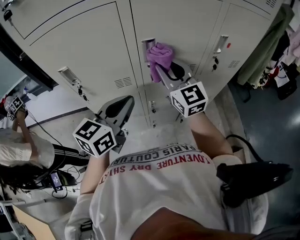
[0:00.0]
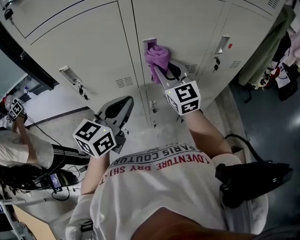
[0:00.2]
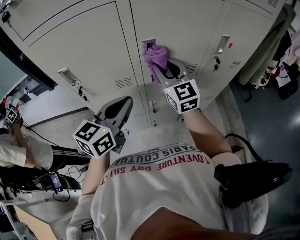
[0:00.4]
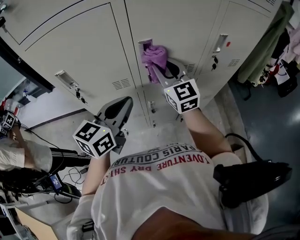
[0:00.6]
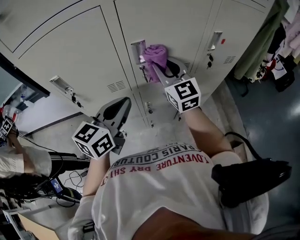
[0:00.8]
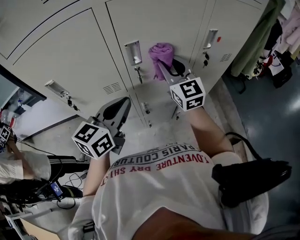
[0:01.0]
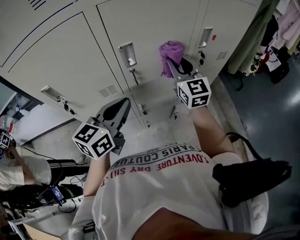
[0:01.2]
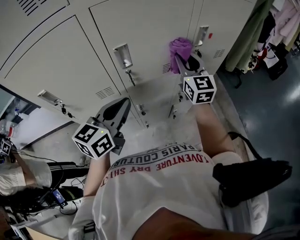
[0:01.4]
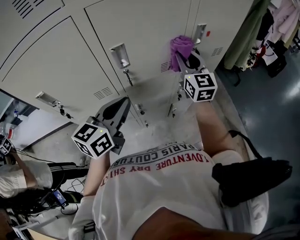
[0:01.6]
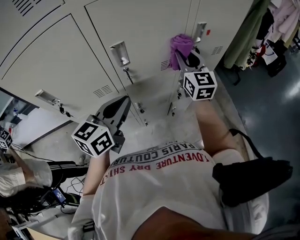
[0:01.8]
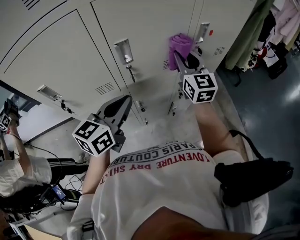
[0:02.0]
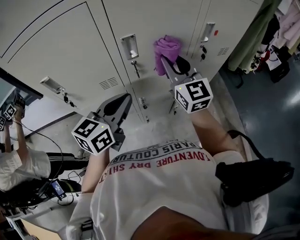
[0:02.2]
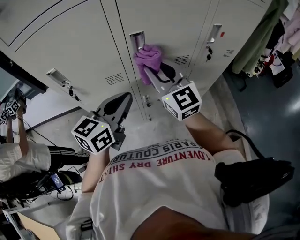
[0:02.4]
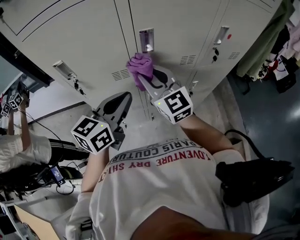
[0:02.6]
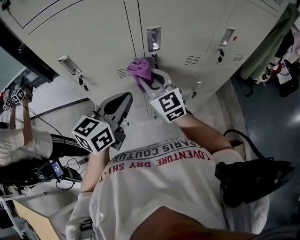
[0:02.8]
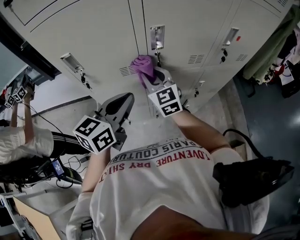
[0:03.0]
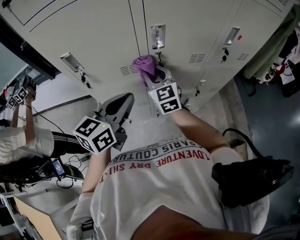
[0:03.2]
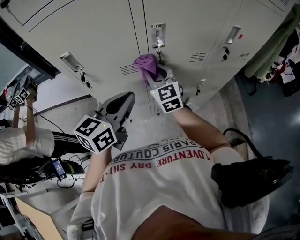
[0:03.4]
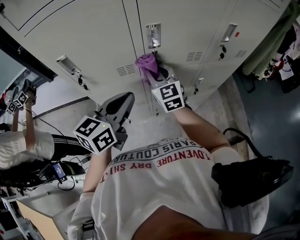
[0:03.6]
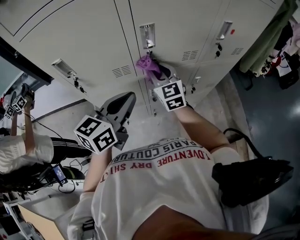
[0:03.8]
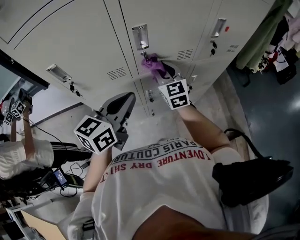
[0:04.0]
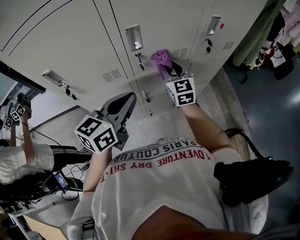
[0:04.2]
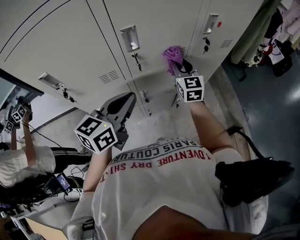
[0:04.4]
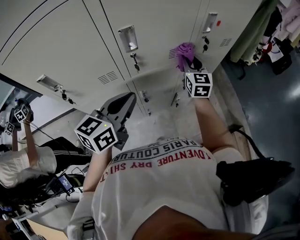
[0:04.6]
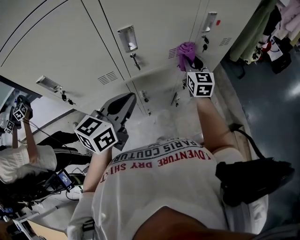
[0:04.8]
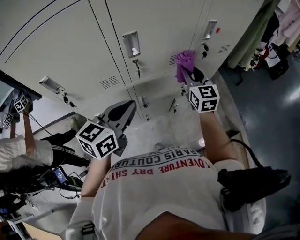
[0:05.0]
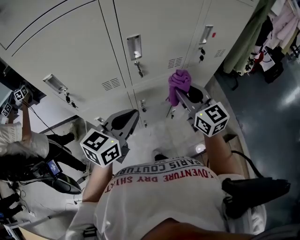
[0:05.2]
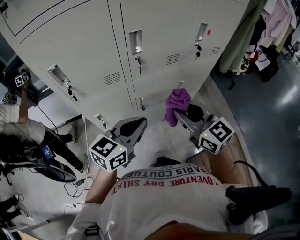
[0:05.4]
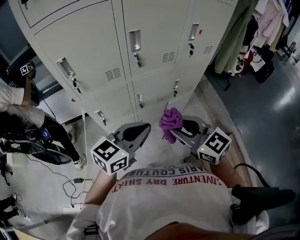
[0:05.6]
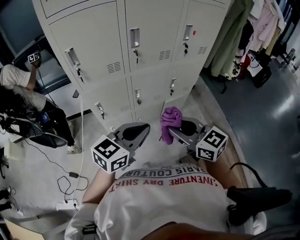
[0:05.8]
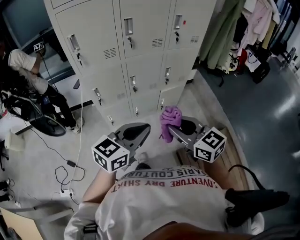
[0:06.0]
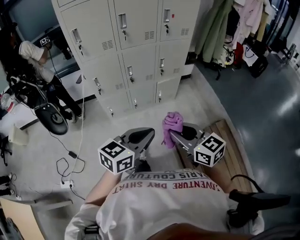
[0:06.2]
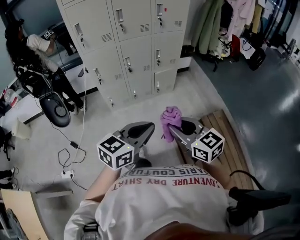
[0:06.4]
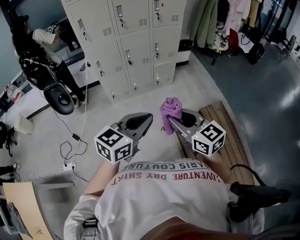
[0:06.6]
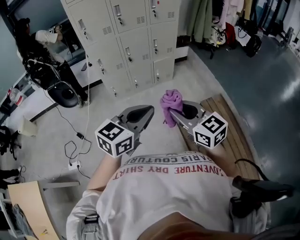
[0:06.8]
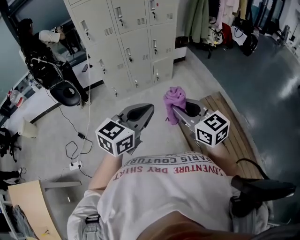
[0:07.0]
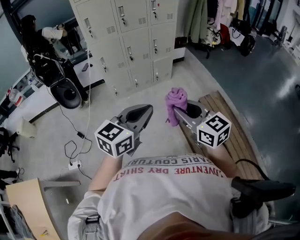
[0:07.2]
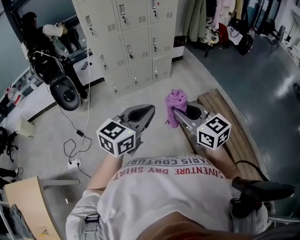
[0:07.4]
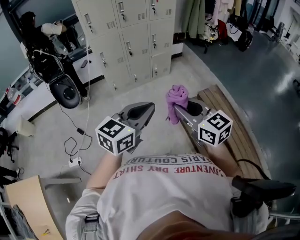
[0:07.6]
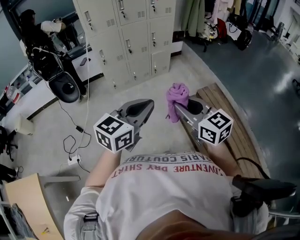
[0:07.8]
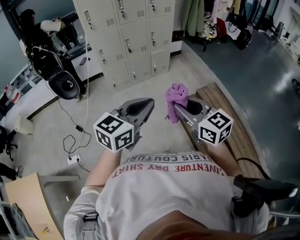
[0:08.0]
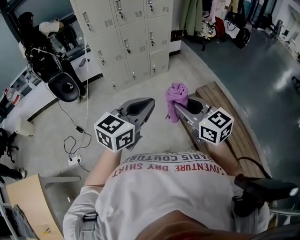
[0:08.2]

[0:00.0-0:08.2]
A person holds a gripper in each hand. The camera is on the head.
0:00.0 to 0:01.6: The left gripper shifts by about 5 cm. Meanwhile the right gripper shifts approximately 20 cm to the right and forward, and changes its angle by some 20 degrees.
0:01.6 to 0:03.2: The left gripper shifts approximately 10 cm to the left and backward. The right gripper travels to the left by approximately 25 cm, and swivels roughly 20 degrees.
0:03.2 to 0:05.0: The right gripper shifts some 25 cm to the right, and turns by roughly 20 degrees. Meanwhile the left gripper goes roughly 5 cm to the right.
0:05.0 to 0:06.6: The pair of grippers is taken backward, roughly 70 cm. The right gripper rotates some 30 degrees.
0:06.6 to 0:08.2: Both grippers move backward, some 15 cm.

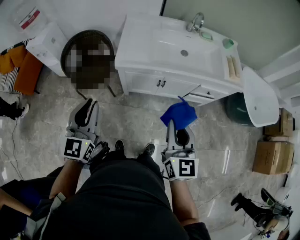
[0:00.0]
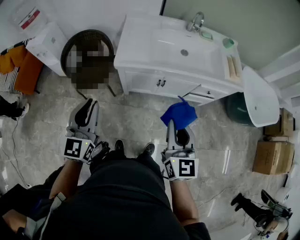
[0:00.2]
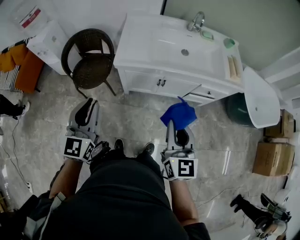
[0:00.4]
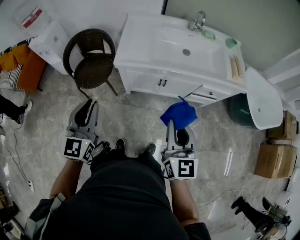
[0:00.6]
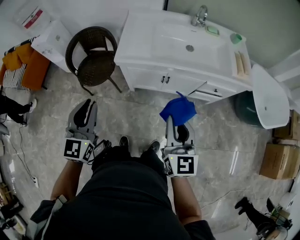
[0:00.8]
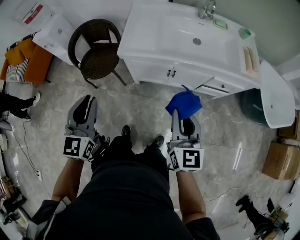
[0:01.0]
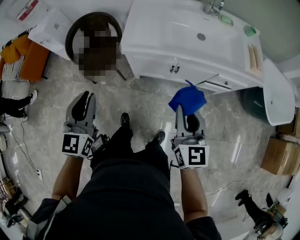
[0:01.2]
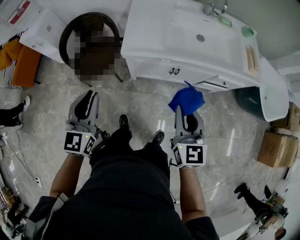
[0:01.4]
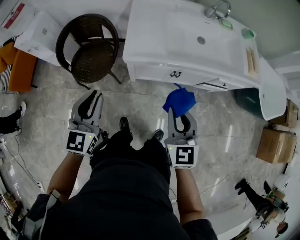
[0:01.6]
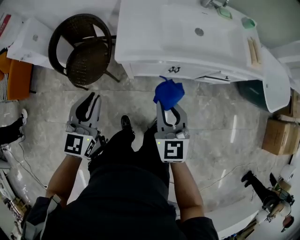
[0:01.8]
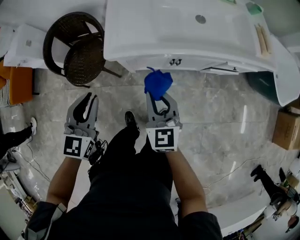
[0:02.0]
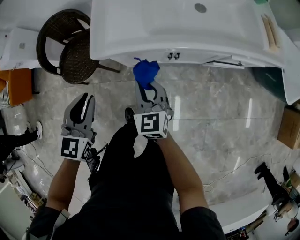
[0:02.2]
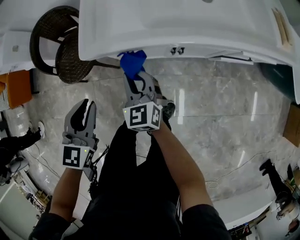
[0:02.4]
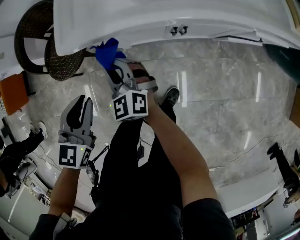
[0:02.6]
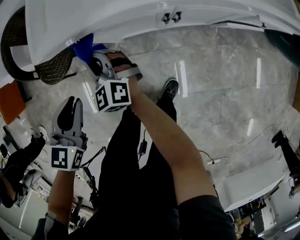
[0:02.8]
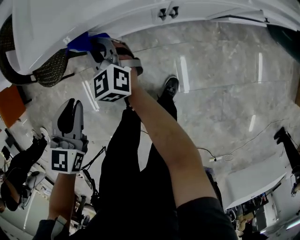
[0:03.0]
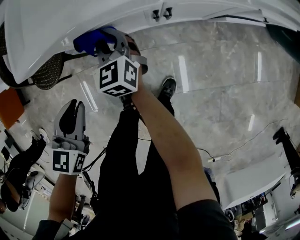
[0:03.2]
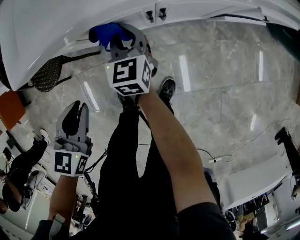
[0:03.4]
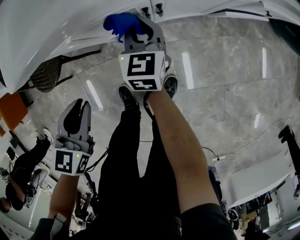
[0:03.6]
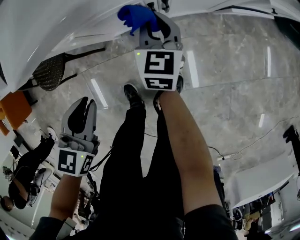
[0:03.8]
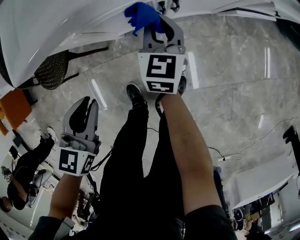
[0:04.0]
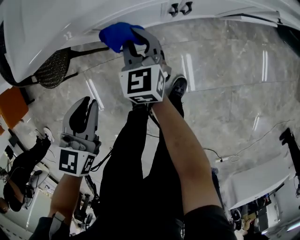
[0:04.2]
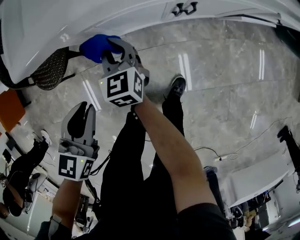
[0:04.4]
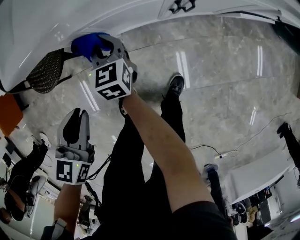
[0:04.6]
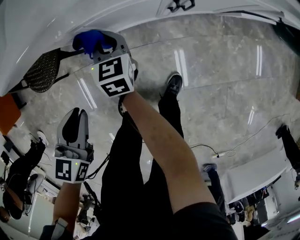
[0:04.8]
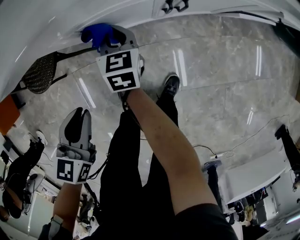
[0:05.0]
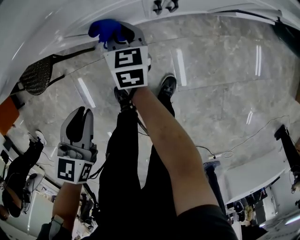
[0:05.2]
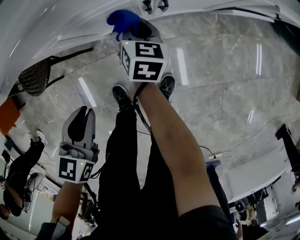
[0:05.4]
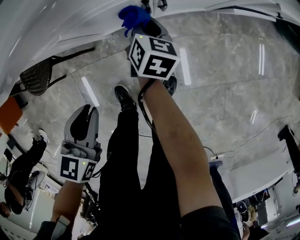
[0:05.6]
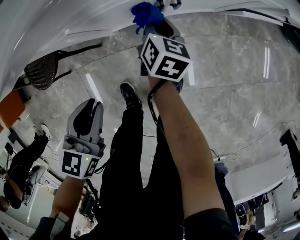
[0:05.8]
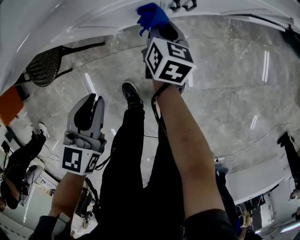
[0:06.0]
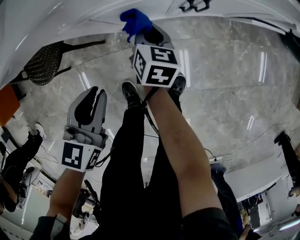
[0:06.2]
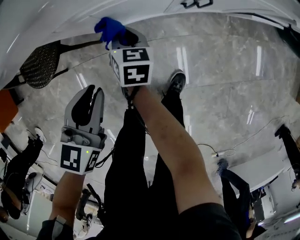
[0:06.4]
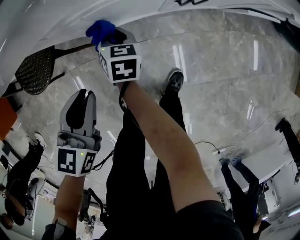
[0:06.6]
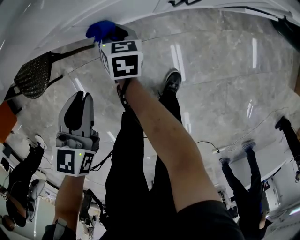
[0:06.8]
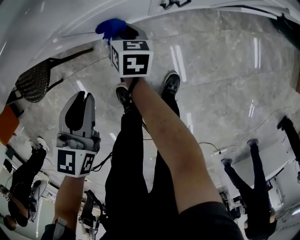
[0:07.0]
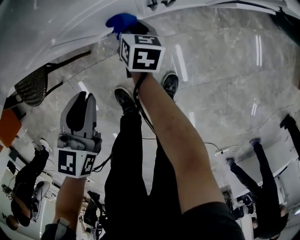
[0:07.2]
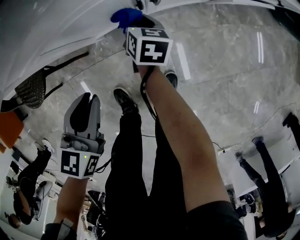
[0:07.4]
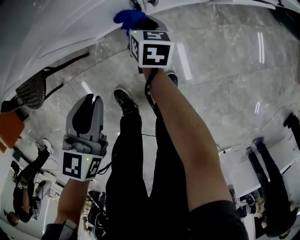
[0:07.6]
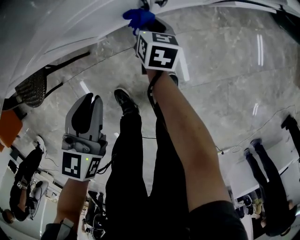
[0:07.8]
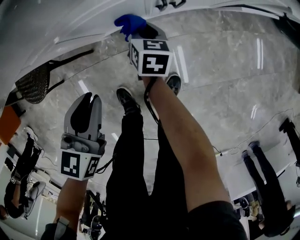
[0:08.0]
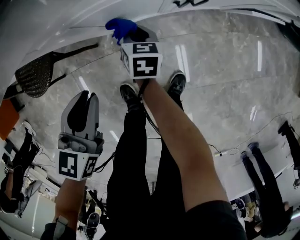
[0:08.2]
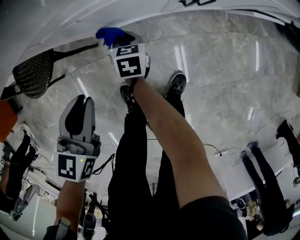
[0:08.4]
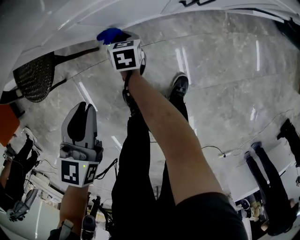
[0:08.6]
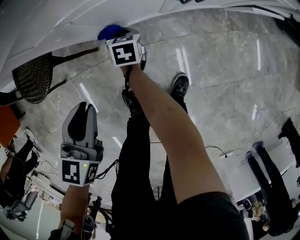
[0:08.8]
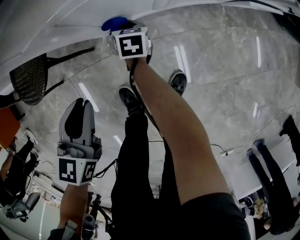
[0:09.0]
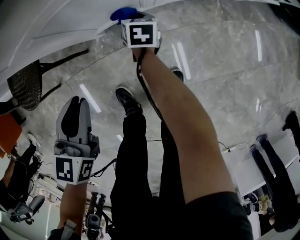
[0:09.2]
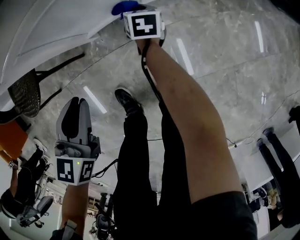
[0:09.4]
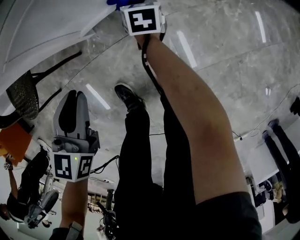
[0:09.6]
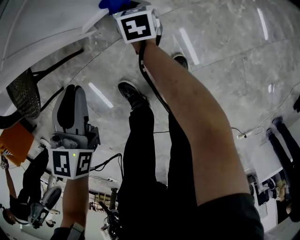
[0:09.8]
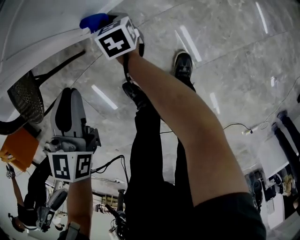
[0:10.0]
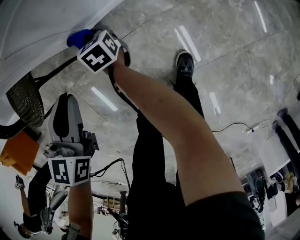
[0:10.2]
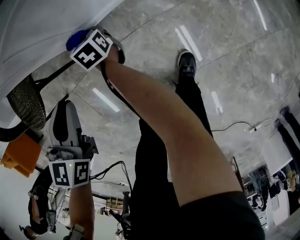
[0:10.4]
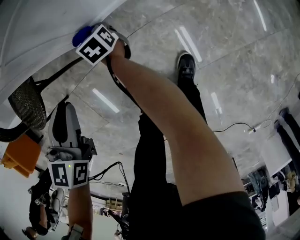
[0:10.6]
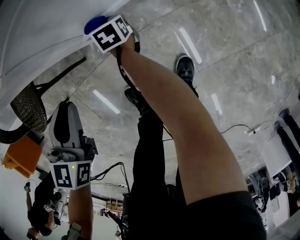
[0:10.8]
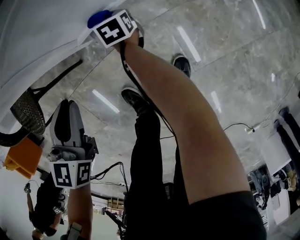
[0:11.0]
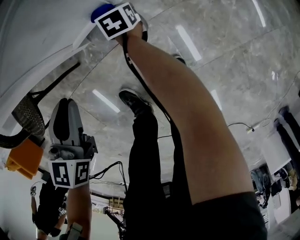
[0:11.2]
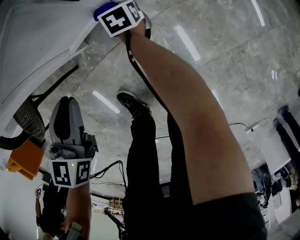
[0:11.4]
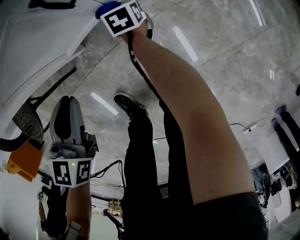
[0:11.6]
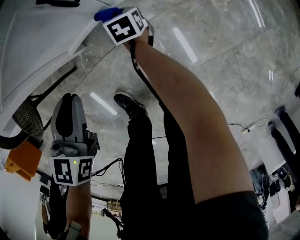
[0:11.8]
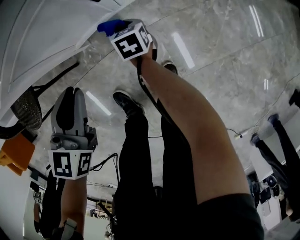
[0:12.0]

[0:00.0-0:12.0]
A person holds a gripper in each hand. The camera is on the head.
0:00.0 to 0:01.6: The right gripper goes some 20 cm to the left, downward and forward, while the left gripper is displaced forward, downward and to the left by about 15 cm.
0:01.6 to 0:03.0: The right gripper moves downward and forward, roughly 50 cm, while the left gripper moves downward, approximately 30 cm, and turns by roughly 30 degrees.
0:03.0 to 0:04.4: The right gripper travels downward by about 5 cm, travels to the right and back again, approximately 20 cm each way, and turns by some 20 degrees. The left gripper travels to the right and back again, roughly 10 cm each way.
0:04.4 to 0:06.0: The left gripper is displaced to the right by about 5 cm; the right gripper moves to the right, roughly 20 cm, and swivels approximately 40 degrees.
0:06.0 to 0:07.6: The right gripper is displaced downward by about 10 cm, and travels to the left and back again, roughly 15 cm each way. The left gripper shifts some 5 cm to the right.
0:07.6 to 0:09.0: The right gripper goes roughly 15 cm to the left and downward. Meanwhile the left gripper moves to the left, some 10 cm.
0:09.0 to 0:10.4: The left gripper heads downward, covering roughly 5 cm, and goes to the right and returns, about 5 cm each way, while the right gripper is displaced to the left and downward by about 10 cm.
0:10.4 to 0:12.0: The right gripper heads to the right, covering roughly 20 cm. Meanwhile the left gripper heads to the right, covering approximately 15 cm.

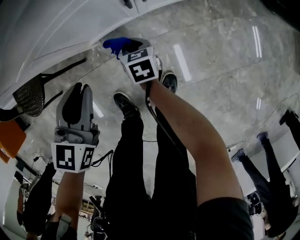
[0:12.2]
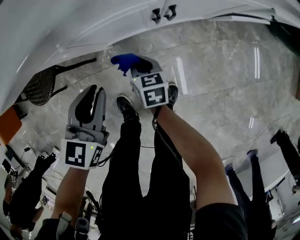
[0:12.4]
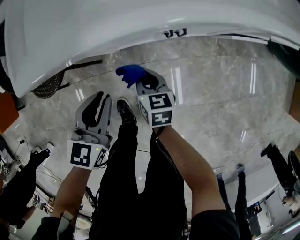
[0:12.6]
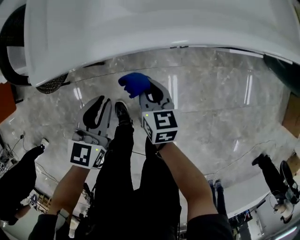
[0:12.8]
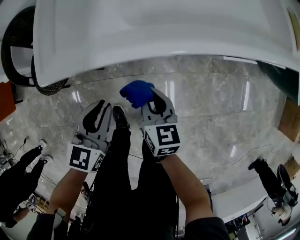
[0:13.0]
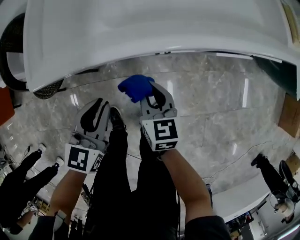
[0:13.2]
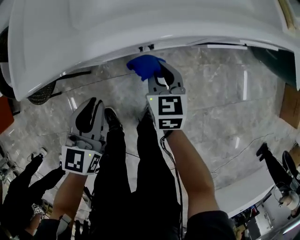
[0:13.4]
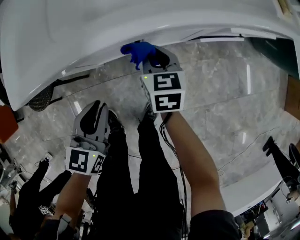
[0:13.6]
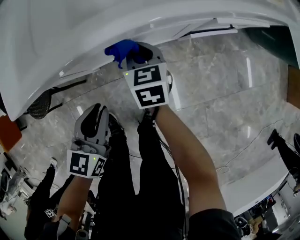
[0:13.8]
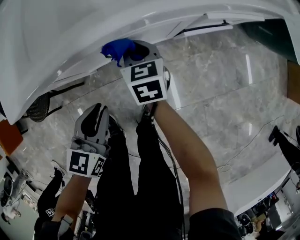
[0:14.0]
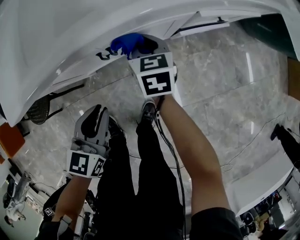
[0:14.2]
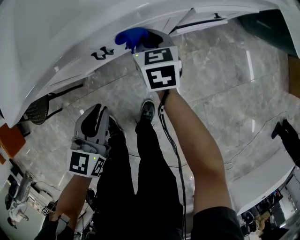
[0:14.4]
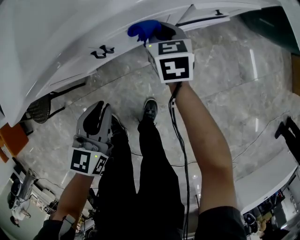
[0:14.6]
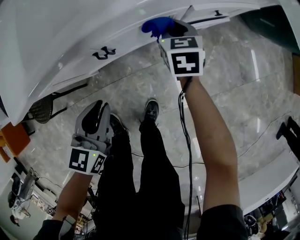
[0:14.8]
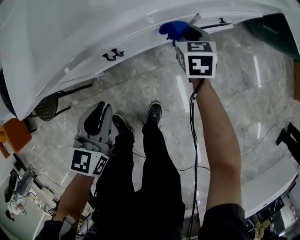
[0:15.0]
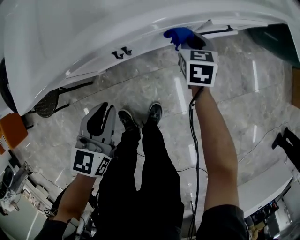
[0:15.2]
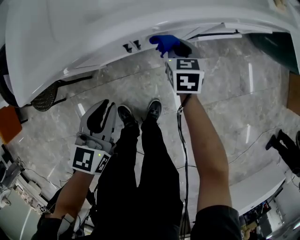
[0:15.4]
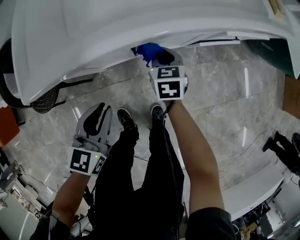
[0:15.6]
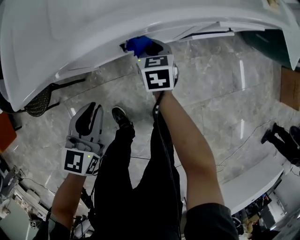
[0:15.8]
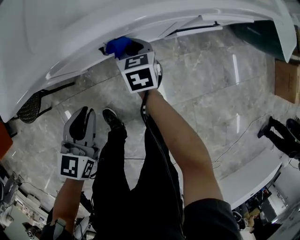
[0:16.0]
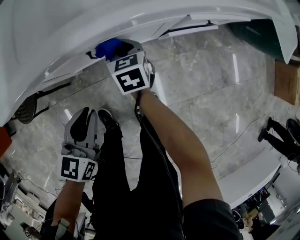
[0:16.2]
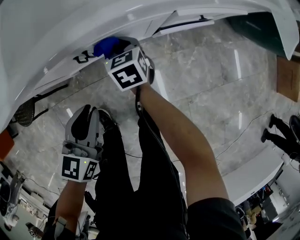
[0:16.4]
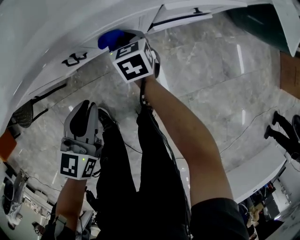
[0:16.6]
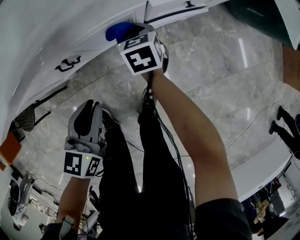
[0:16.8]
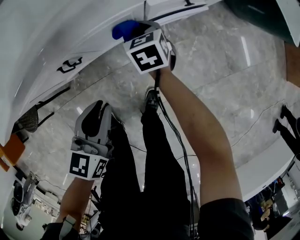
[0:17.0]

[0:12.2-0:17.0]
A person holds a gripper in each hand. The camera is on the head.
0:12.2 to 0:13.8: The left gripper goes some 15 cm to the right and upward; the right gripper travels upward, to the right and forward by approximately 30 cm.
0:13.8 to 0:15.4: The right gripper moves to the right, roughly 10 cm.
0:15.4 to 0:17.0: The left gripper goes about 20 cm to the right. Meanwhile the right gripper heads to the right and downward, covering some 10 cm.
